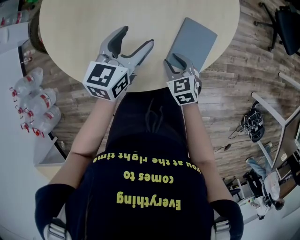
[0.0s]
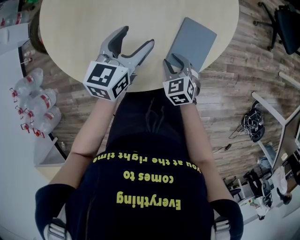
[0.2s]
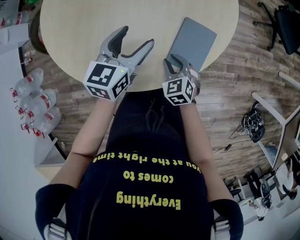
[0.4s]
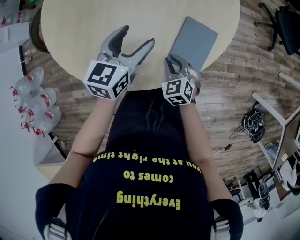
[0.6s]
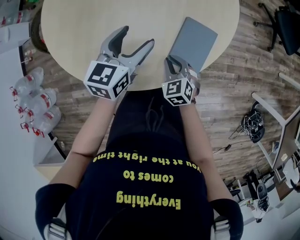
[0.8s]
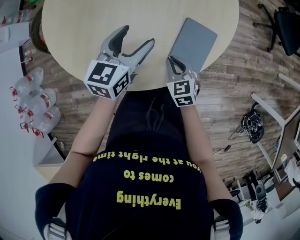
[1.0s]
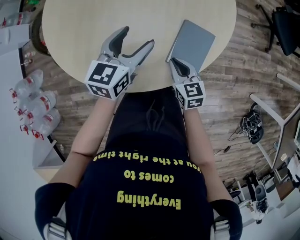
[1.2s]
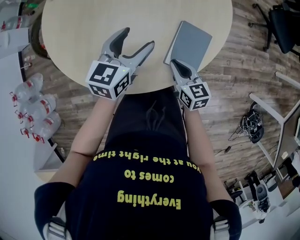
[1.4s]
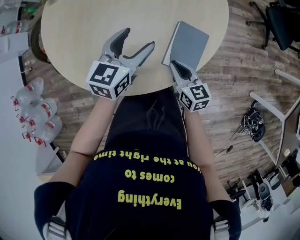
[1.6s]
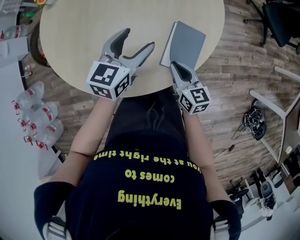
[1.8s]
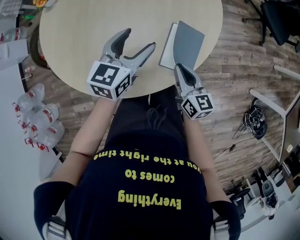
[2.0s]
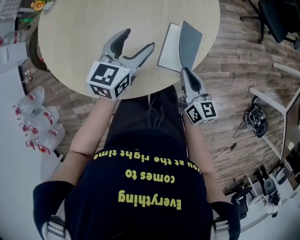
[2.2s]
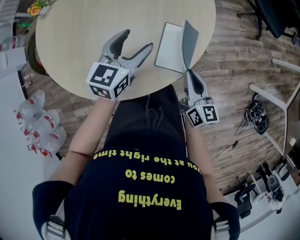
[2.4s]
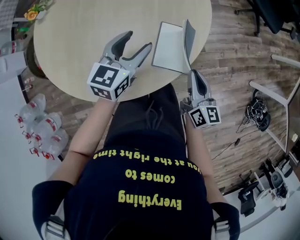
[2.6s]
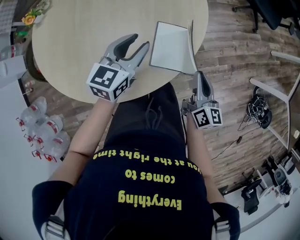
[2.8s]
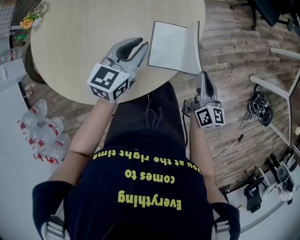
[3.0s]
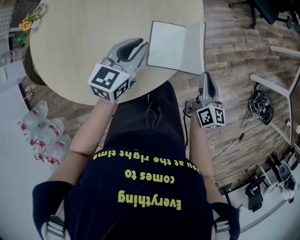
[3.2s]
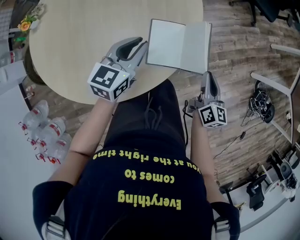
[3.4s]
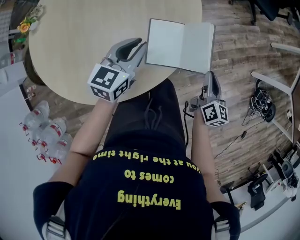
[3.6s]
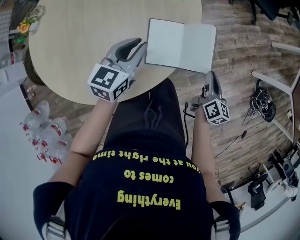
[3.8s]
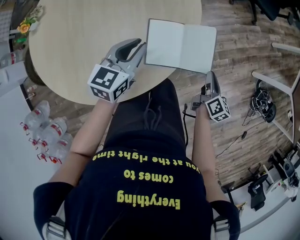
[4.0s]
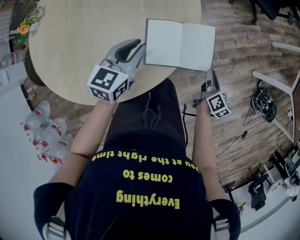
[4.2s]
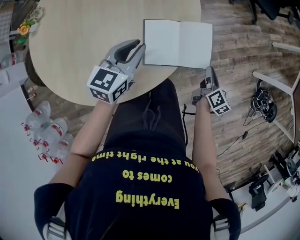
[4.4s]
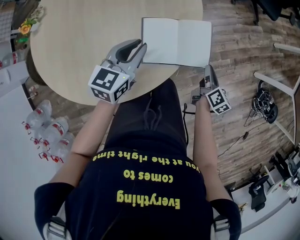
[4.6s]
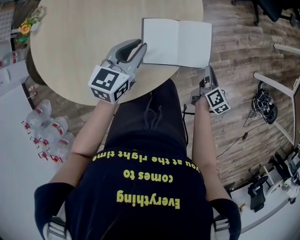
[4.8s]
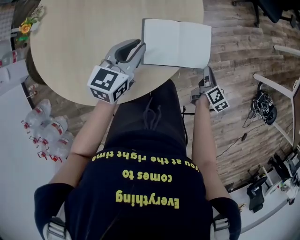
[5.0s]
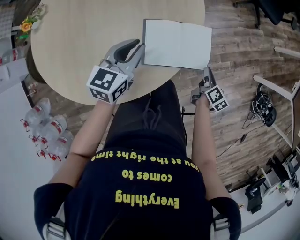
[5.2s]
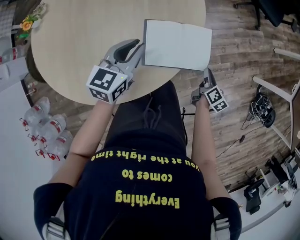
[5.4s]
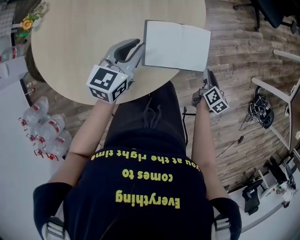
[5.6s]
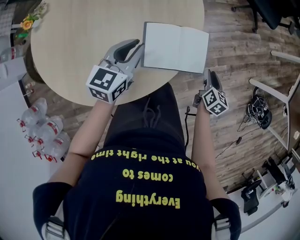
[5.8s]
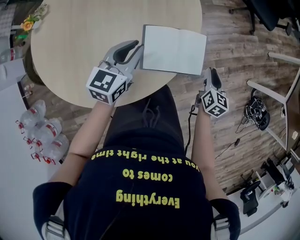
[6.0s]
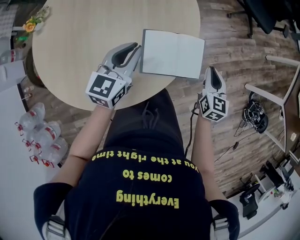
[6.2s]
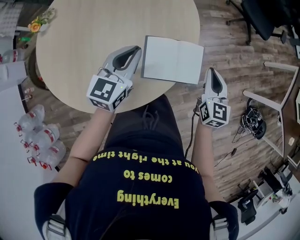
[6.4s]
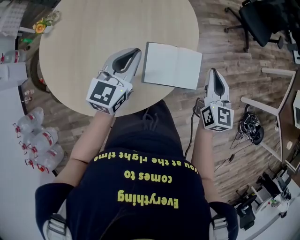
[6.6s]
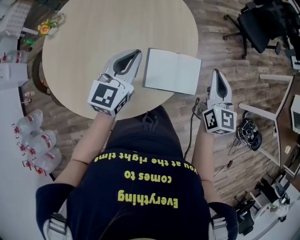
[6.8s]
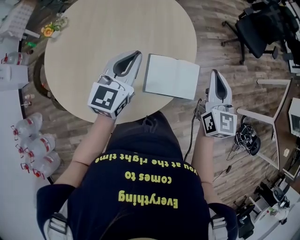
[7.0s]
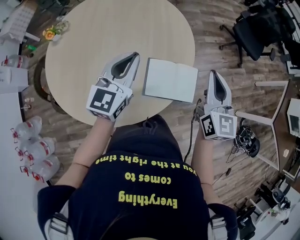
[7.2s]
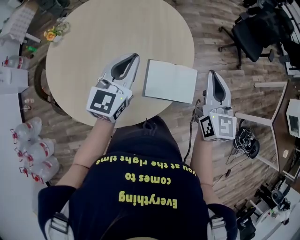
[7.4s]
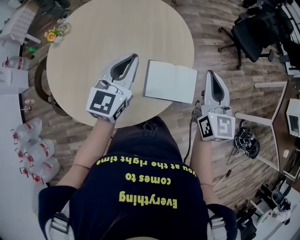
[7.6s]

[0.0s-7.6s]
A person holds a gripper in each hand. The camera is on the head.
0.0s to 1.6s: The right gripper shifts some 5 cm upward, and changes its angle by some 30 degrees.
1.6s to 3.0s: The right gripper moves roughly 20 cm, and changes its angle by approximately 40 degrees. Meanwhile the left gripper moves some 10 cm, and closes up.
3.0s to 4.6s: The right gripper travels downward and to the right by roughly 10 cm, and swivels roughly 20 degrees.
4.6s to 6.0s: The right gripper swivels about 30 degrees.
6.0s to 7.6s: The left gripper is displaced upward by about 15 cm, and swivels approximately 20 degrees. The right gripper heads upward and to the left, covering roughly 30 cm, and rotates approximately 40 degrees.

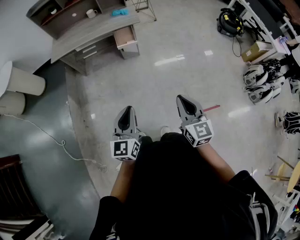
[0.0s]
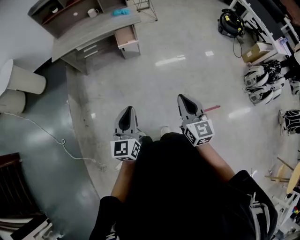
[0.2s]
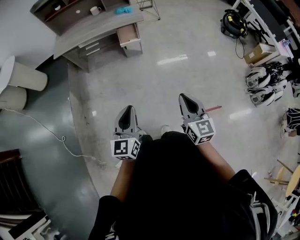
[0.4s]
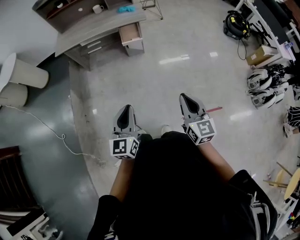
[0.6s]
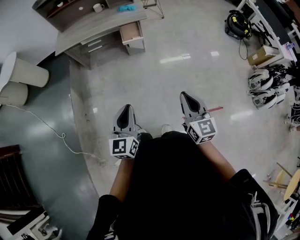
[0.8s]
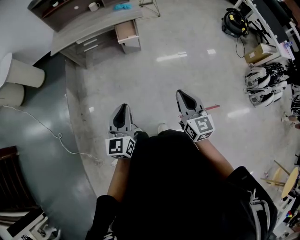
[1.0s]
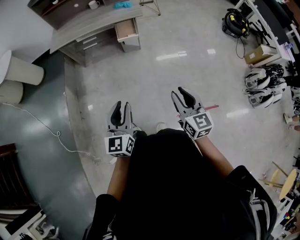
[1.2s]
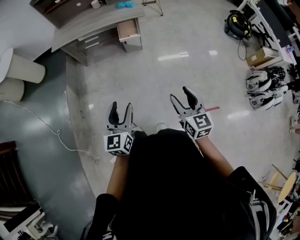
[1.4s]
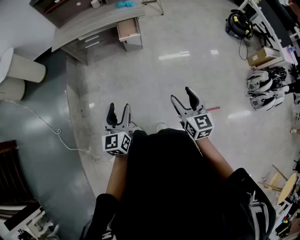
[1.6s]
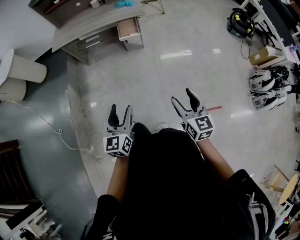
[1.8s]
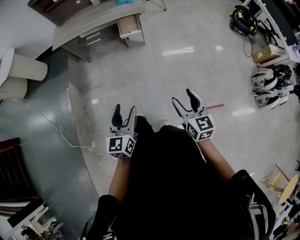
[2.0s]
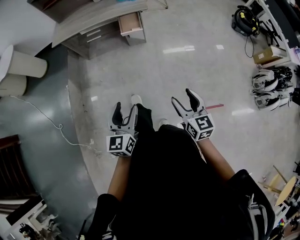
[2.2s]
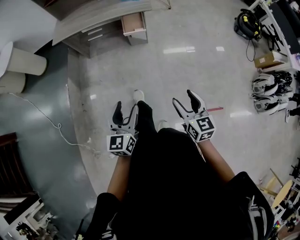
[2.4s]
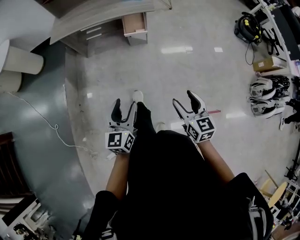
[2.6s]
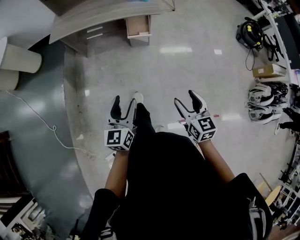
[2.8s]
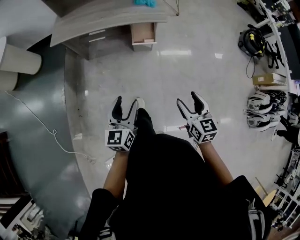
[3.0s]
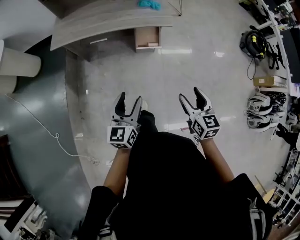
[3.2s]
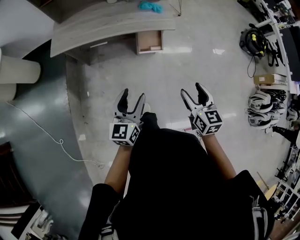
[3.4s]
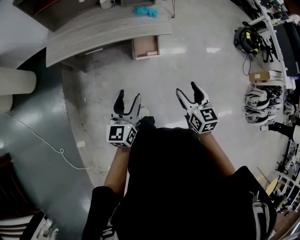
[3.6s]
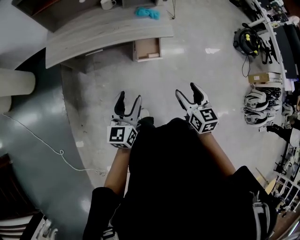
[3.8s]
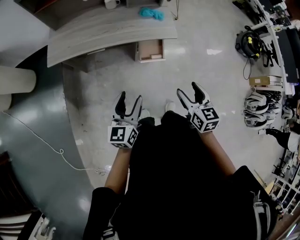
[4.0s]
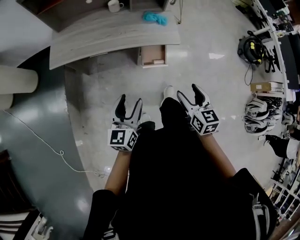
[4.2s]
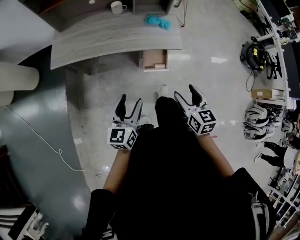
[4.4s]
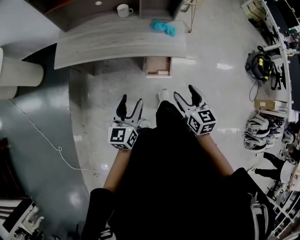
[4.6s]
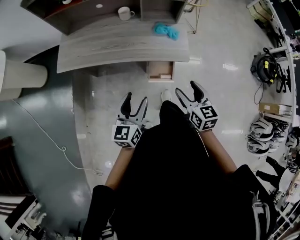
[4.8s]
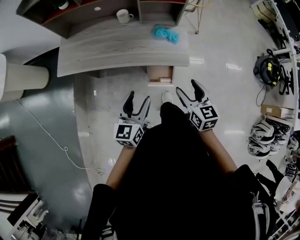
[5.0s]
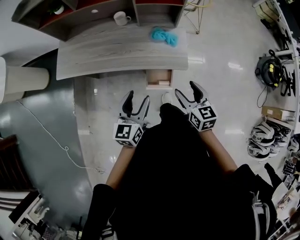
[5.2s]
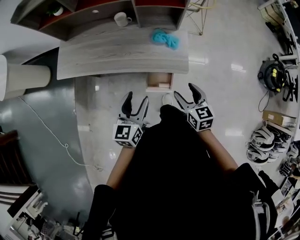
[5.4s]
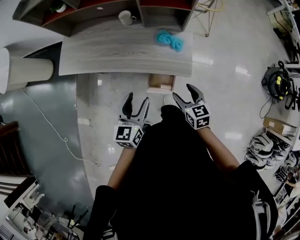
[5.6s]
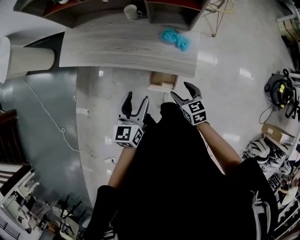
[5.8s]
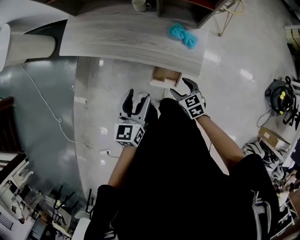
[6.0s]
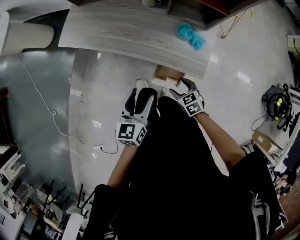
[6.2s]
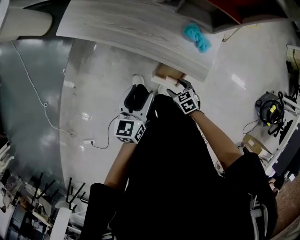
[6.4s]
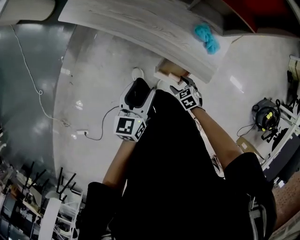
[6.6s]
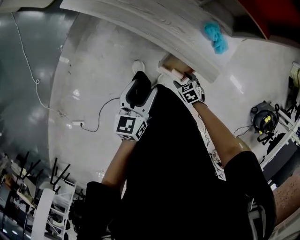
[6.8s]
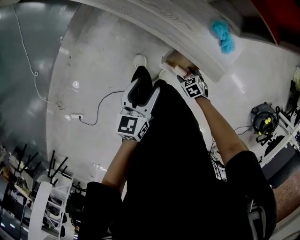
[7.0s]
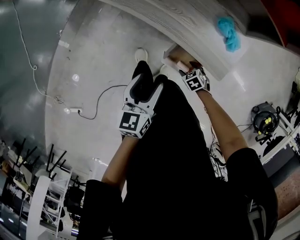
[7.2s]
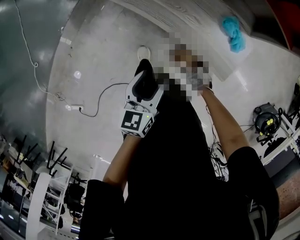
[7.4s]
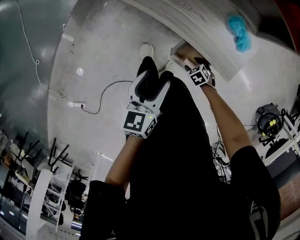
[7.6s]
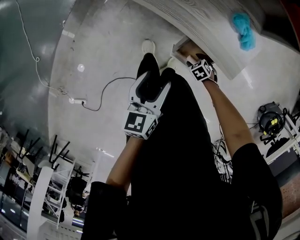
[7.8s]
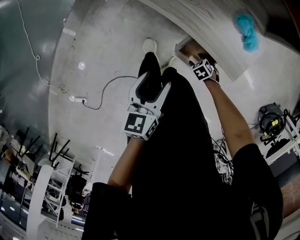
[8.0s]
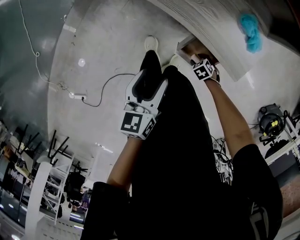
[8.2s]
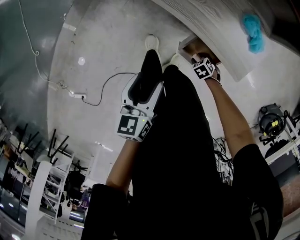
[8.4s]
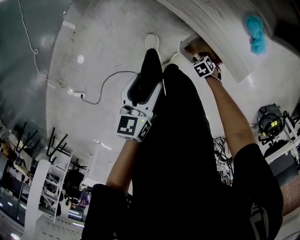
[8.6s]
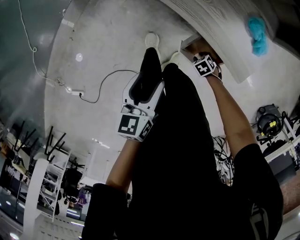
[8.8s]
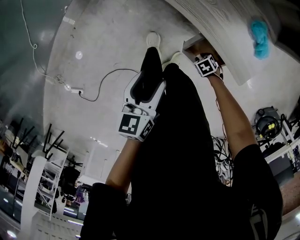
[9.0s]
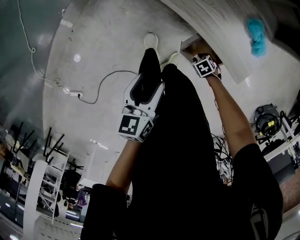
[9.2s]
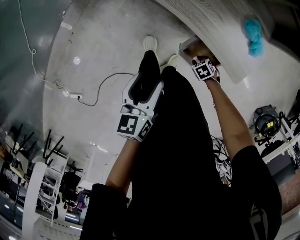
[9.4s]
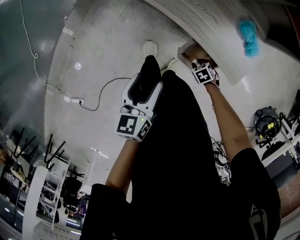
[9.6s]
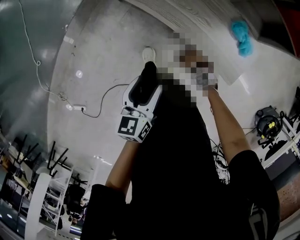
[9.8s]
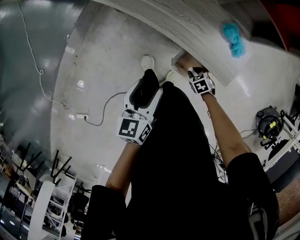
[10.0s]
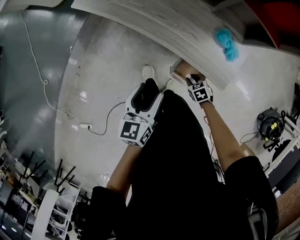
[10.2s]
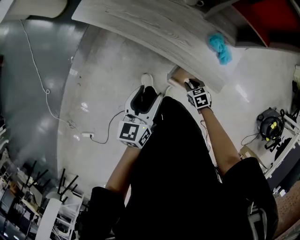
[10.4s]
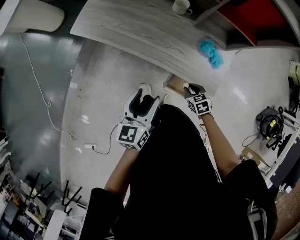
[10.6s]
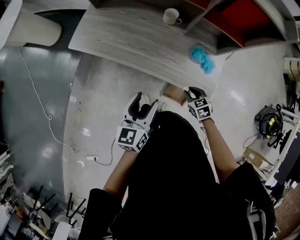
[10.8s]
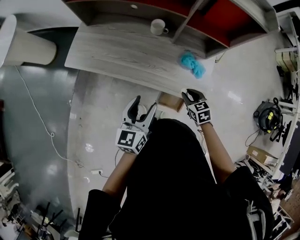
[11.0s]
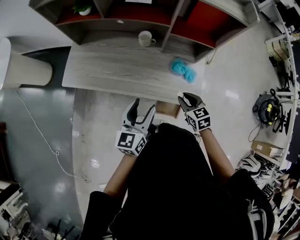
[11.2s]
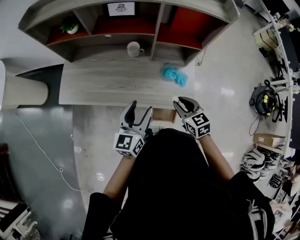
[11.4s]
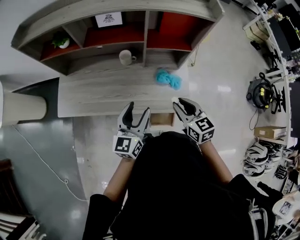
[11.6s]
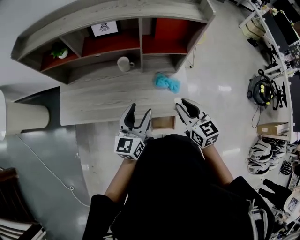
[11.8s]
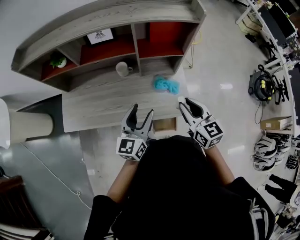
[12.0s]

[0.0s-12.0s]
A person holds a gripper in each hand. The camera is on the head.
0.0s to 1.6s: The right gripper changes place by approximately 5 cm, and opens; the left gripper shifts some 5 cm downward, and opens.
1.6s to 3.0s: Both grippers move forward, some 25 cm.
3.0s to 4.4s: Both grippers move forward, about 30 cm.
4.4s to 6.0s: The right gripper shifts by roughly 30 cm, and swivels roughly 40 degrees, while the left gripper shifts by about 25 cm, and swivels about 20 degrees.
6.0s to 7.6s: The right gripper is displaced downward by roughly 30 cm, and points its fingers approximately 30 degrees further downward. The left gripper moves downward, some 15 cm, and rotates some 20 degrees.
7.6s to 9.0s: The left gripper ends up some 10 cm from where it was; the right gripper is displaced downward by approximately 5 cm, and closes.
9.0s to 10.4s: The left gripper shifts approximately 10 cm upward. Meanwhile the right gripper moves upward, about 20 cm, and rotates roughly 30 degrees.
10.4s to 12.0s: The right gripper is displaced upward by some 40 cm, and tilts its fingers some 50 degrees upward, while the left gripper moves some 25 cm, and changes its angle by about 40 degrees.

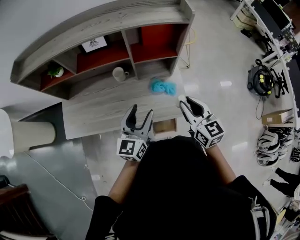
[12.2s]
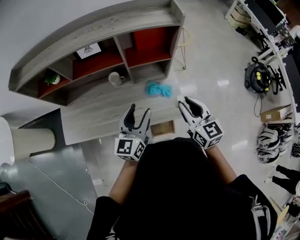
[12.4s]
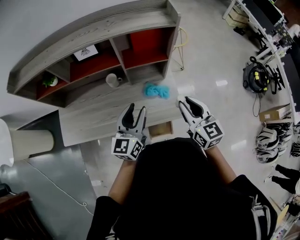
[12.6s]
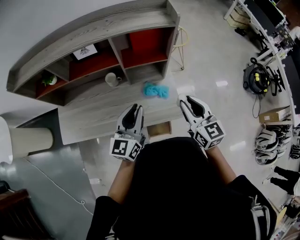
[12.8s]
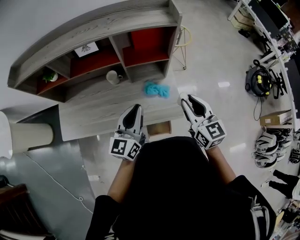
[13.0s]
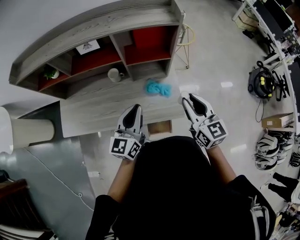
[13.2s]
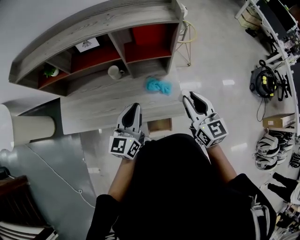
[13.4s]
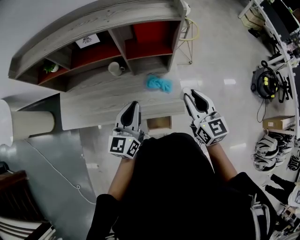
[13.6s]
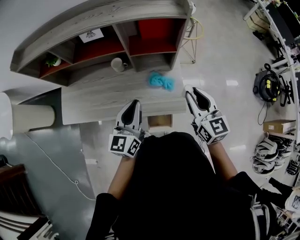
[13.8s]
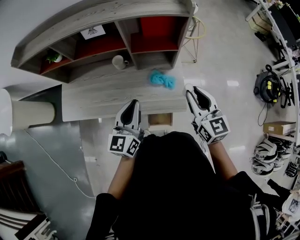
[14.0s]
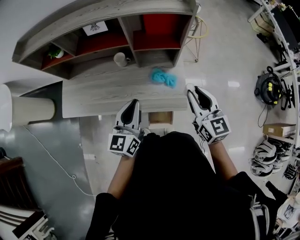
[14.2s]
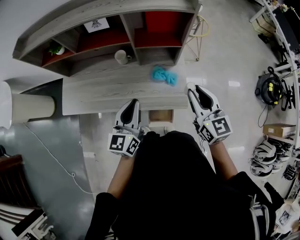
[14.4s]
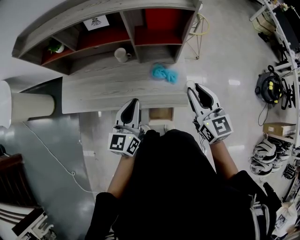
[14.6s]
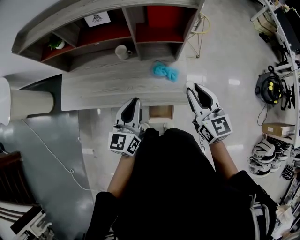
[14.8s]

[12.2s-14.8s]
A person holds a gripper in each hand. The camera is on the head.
12.2s to 13.4s: The right gripper heads to the right, covering approximately 5 cm. Meanwhile the left gripper closes.
13.4s to 14.8s: The left gripper shifts by some 5 cm.

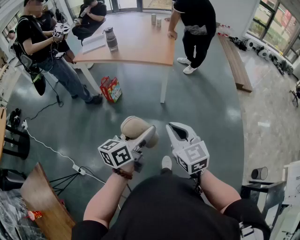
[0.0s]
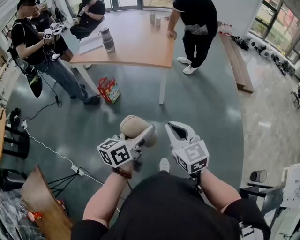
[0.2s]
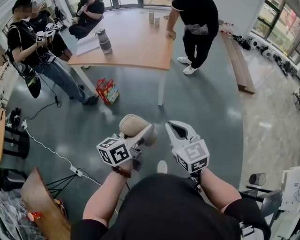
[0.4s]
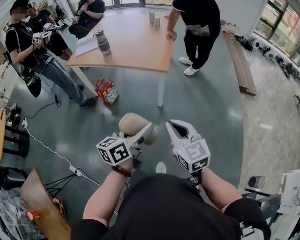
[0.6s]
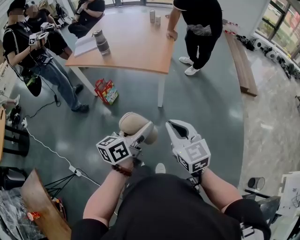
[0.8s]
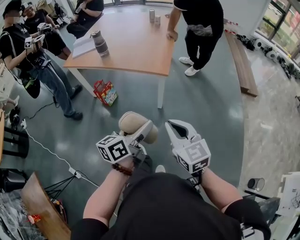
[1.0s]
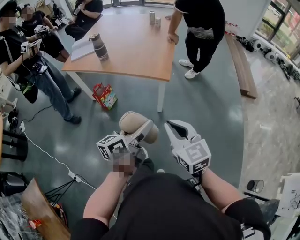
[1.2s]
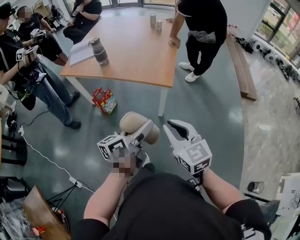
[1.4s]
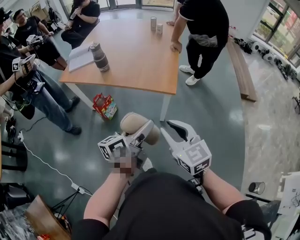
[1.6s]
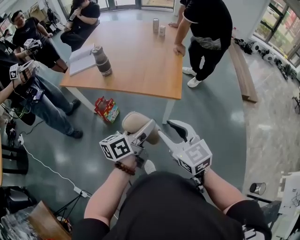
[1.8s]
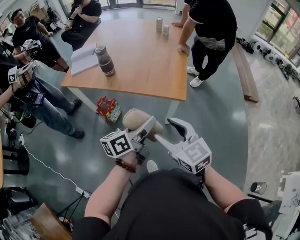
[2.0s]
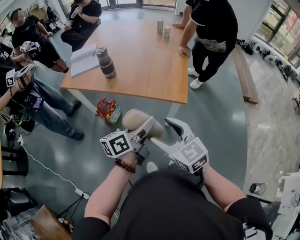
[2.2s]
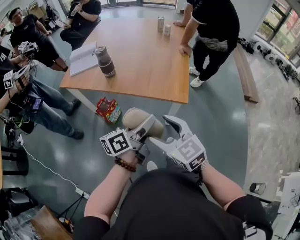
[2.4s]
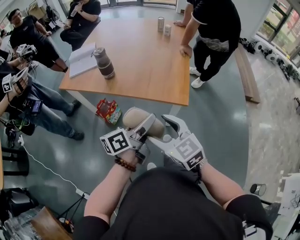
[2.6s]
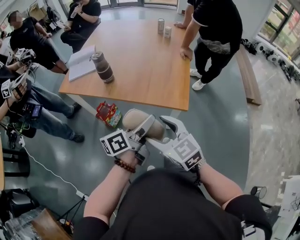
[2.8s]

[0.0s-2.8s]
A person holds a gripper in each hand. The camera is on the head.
0.0s to 1.4s: The two grippers go roughly 25 cm forward.
1.4s to 2.8s: The right gripper is displaced forward and to the left by about 20 cm, and opens its fingers; the left gripper travels forward by about 20 cm.
